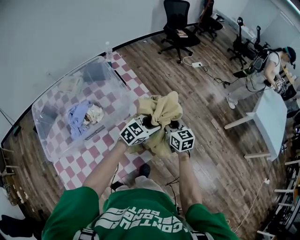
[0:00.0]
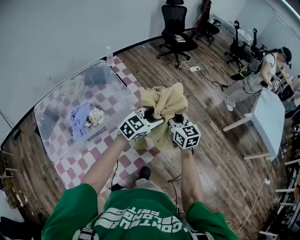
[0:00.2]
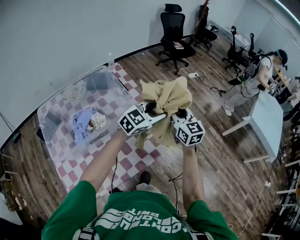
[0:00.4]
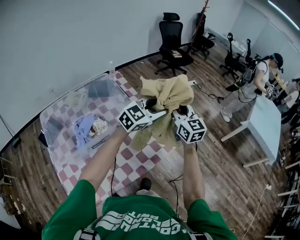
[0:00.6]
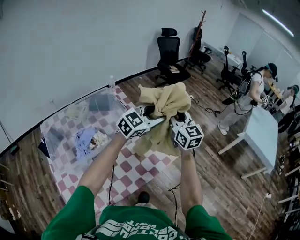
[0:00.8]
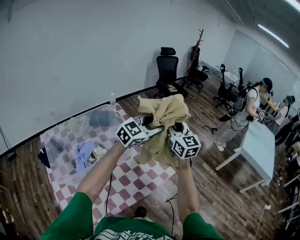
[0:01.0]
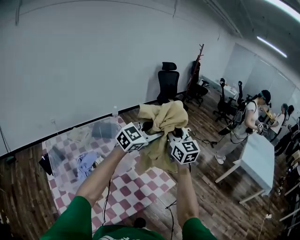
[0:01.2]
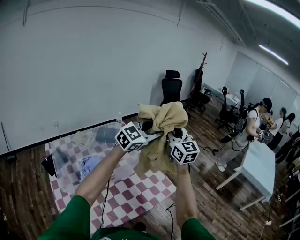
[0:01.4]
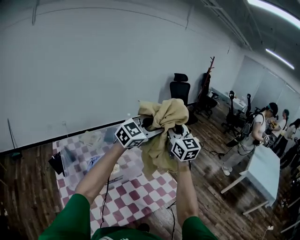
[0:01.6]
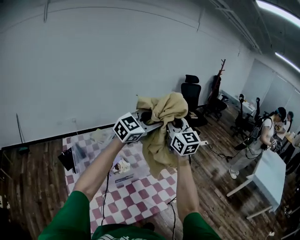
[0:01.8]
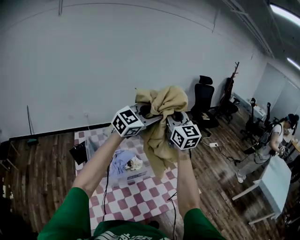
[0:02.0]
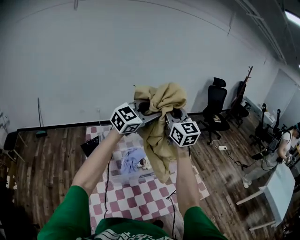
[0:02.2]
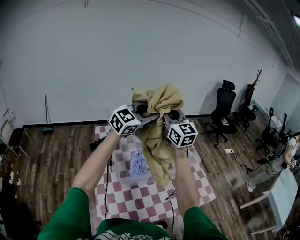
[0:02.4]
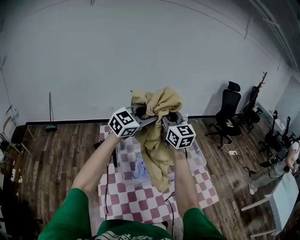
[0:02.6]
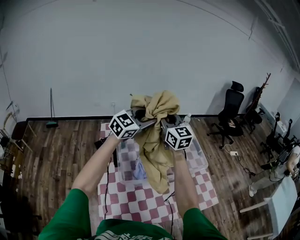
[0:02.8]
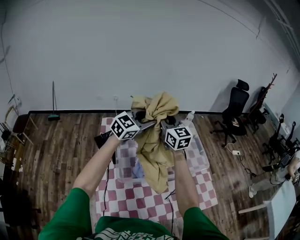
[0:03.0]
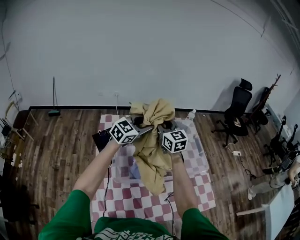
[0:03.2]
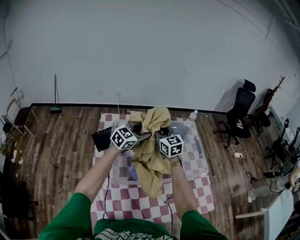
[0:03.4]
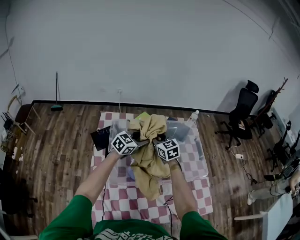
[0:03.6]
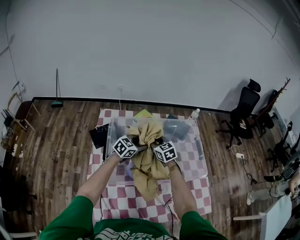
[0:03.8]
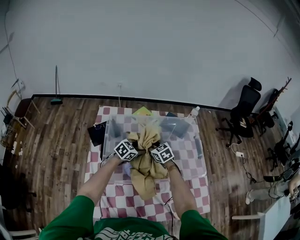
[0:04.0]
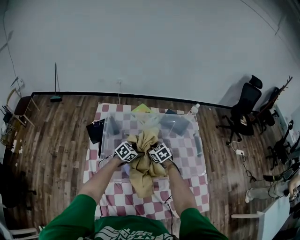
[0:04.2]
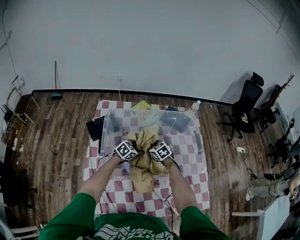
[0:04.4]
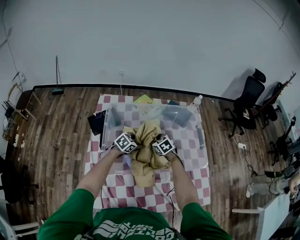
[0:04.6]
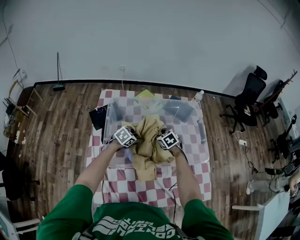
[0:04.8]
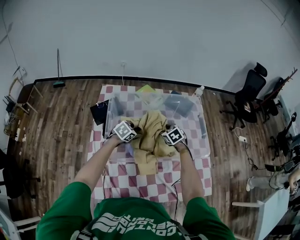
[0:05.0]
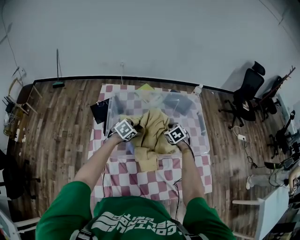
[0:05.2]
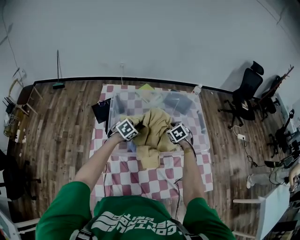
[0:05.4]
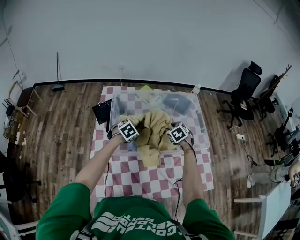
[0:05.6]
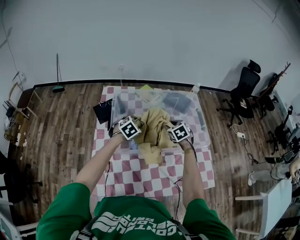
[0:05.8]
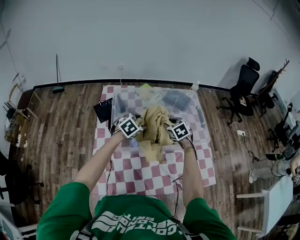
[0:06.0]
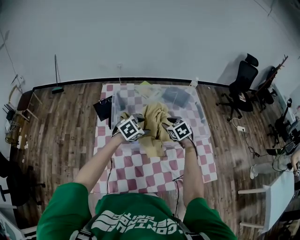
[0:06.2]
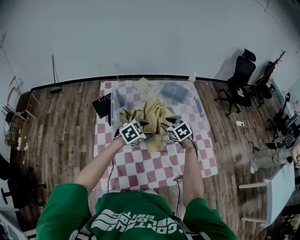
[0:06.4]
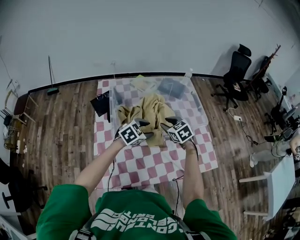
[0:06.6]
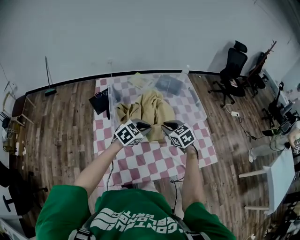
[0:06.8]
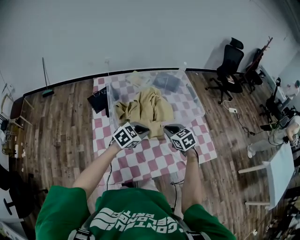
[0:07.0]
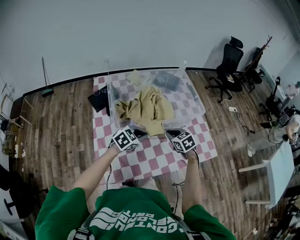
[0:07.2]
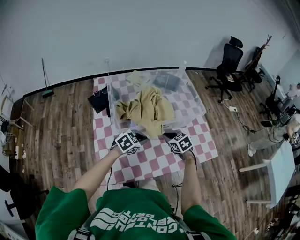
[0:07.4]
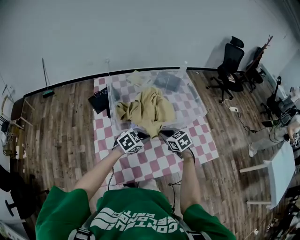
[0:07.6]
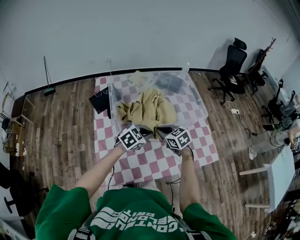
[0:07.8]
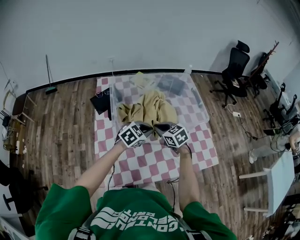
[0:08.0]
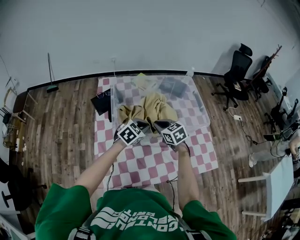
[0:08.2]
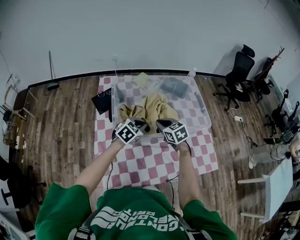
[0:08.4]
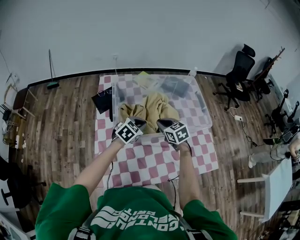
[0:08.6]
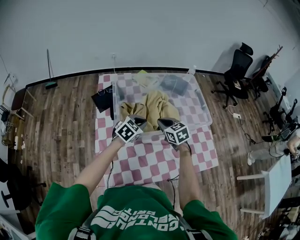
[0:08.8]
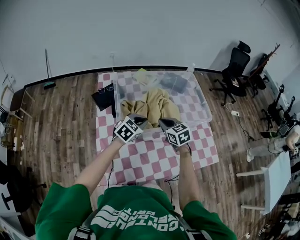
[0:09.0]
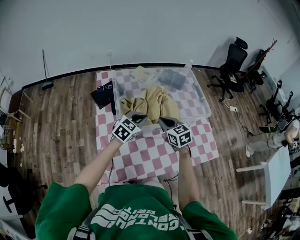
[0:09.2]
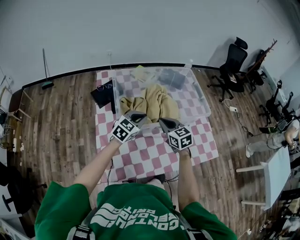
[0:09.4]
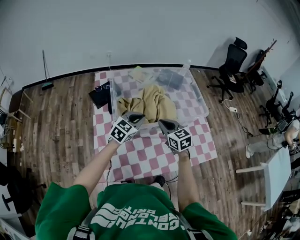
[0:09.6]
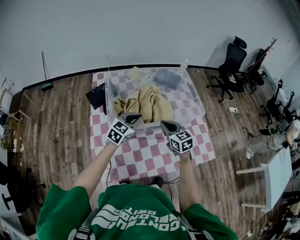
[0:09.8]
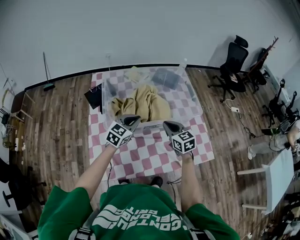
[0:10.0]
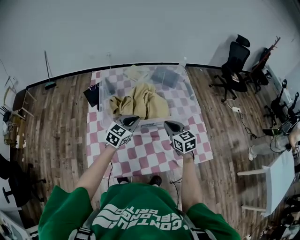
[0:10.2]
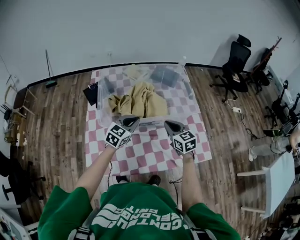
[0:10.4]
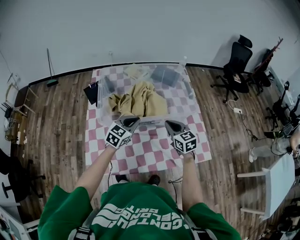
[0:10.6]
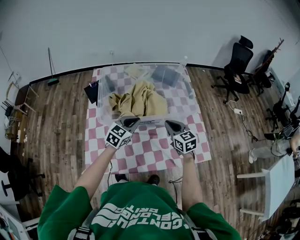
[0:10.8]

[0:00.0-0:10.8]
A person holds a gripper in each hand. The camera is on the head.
0:00.0 to 0:01.6: Both grippers move upward, about 40 cm. The right gripper tilts its fingers some 30 degrees upward; the left gripper changes its angle by about 30 degrees.
0:01.6 to 0:03.0: Both grippers are carried approximately 40 cm. The left gripper changes its angle by roughly 30 degrees. Meanwhile the right gripper swivels roughly 30 degrees.
0:03.0 to 0:04.6: Both grippers travel together downward, approximately 40 cm. The left gripper angles its fingers downward, by roughly 40 degrees, while the right gripper tilts its fingers about 50 degrees downward.
0:04.6 to 0:06.2: The right gripper travels upward, backward and to the right by approximately 15 cm. Meanwhile the left gripper moves upward and backward, roughly 15 cm.
0:06.2 to 0:07.8: The right gripper shifts roughly 15 cm backward, while the left gripper heads backward and to the right, covering approximately 15 cm, and closes up.
0:07.8 to 0:09.2: The left gripper is displaced to the left and forward by some 10 cm. Meanwhile the right gripper travels forward and back again, roughly 10 cm each way.
0:09.2 to 0:10.8: The right gripper is displaced to the right by about 15 cm, while the left gripper shifts about 10 cm to the right.

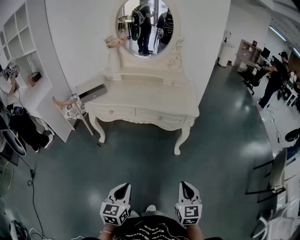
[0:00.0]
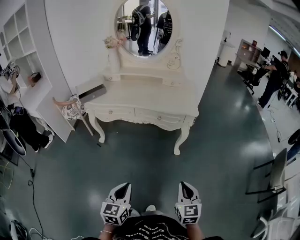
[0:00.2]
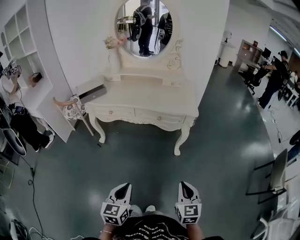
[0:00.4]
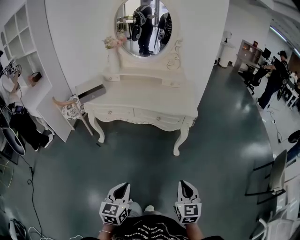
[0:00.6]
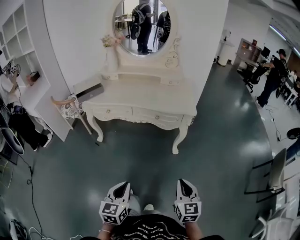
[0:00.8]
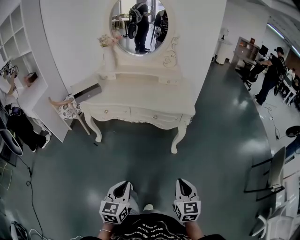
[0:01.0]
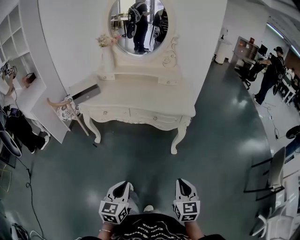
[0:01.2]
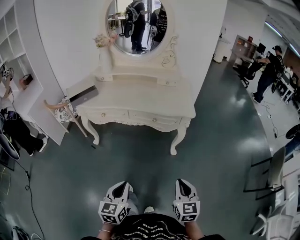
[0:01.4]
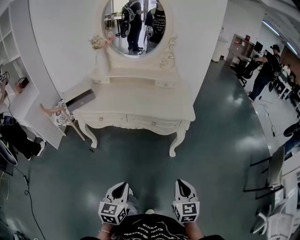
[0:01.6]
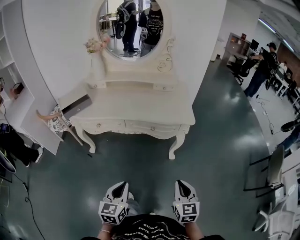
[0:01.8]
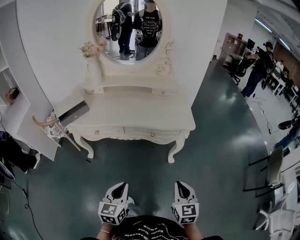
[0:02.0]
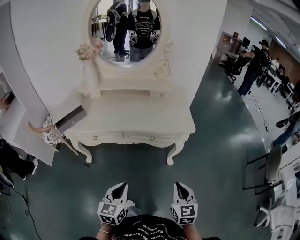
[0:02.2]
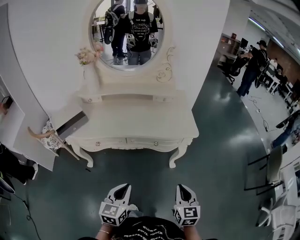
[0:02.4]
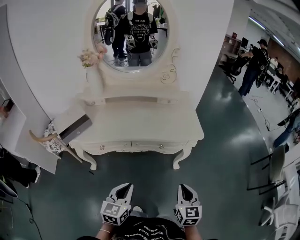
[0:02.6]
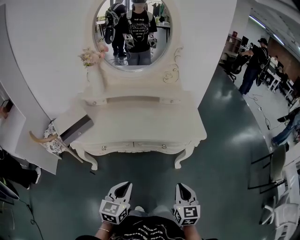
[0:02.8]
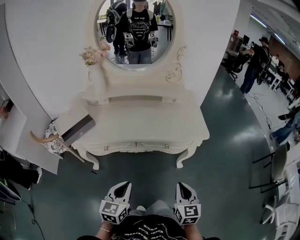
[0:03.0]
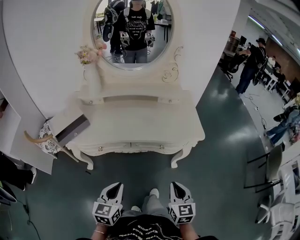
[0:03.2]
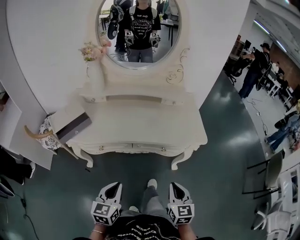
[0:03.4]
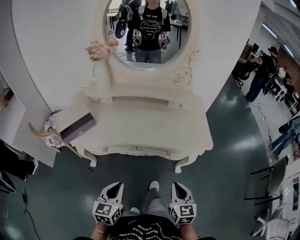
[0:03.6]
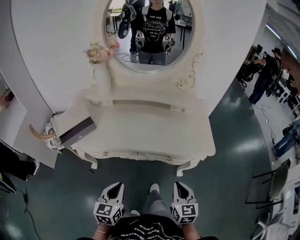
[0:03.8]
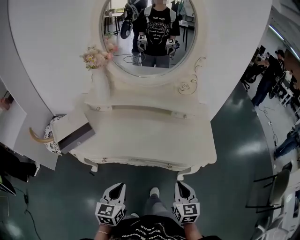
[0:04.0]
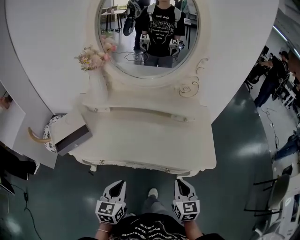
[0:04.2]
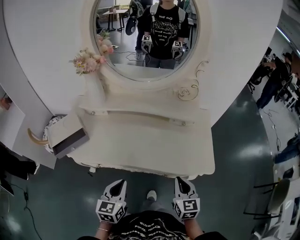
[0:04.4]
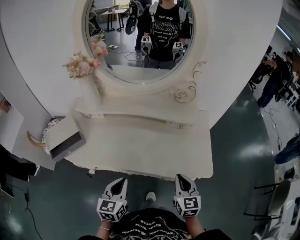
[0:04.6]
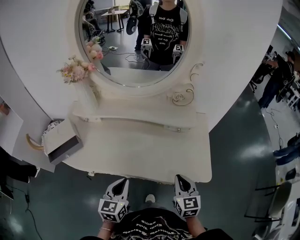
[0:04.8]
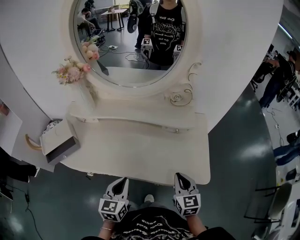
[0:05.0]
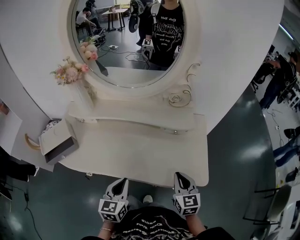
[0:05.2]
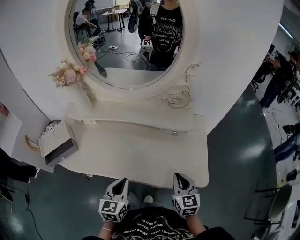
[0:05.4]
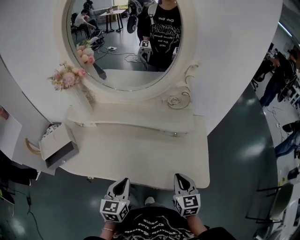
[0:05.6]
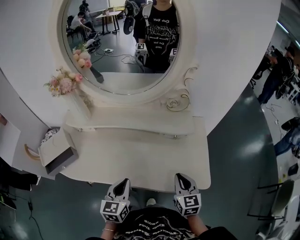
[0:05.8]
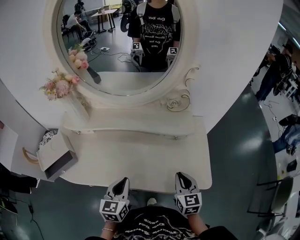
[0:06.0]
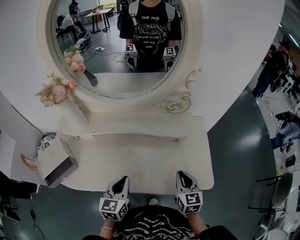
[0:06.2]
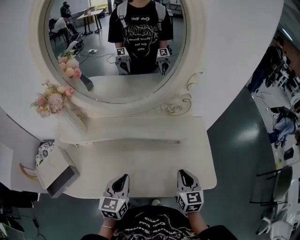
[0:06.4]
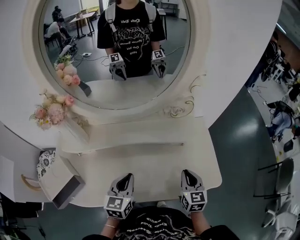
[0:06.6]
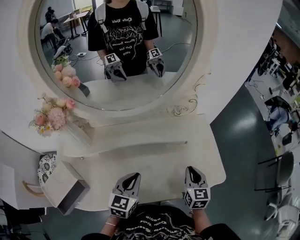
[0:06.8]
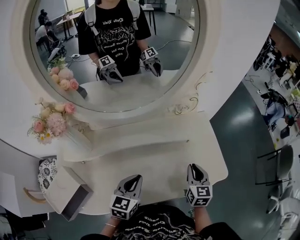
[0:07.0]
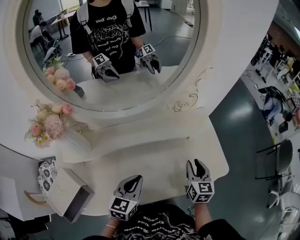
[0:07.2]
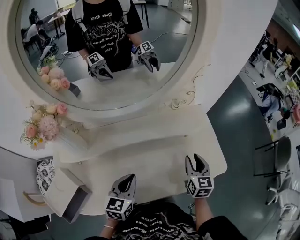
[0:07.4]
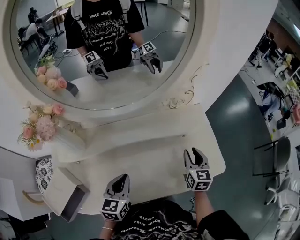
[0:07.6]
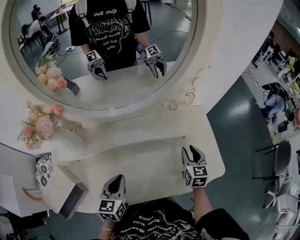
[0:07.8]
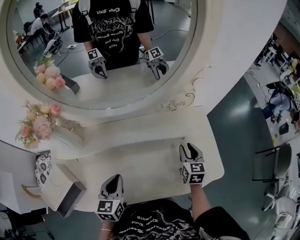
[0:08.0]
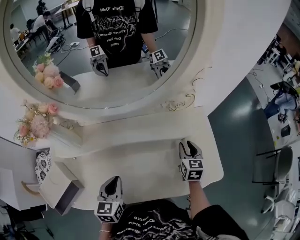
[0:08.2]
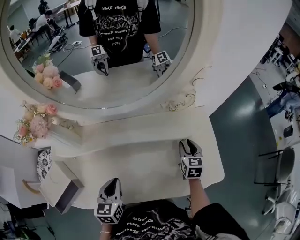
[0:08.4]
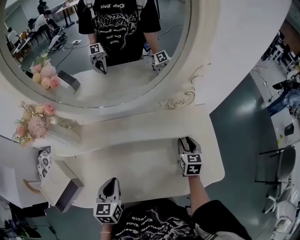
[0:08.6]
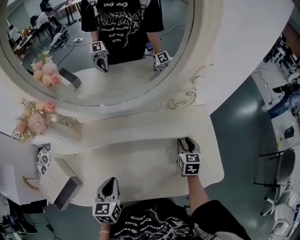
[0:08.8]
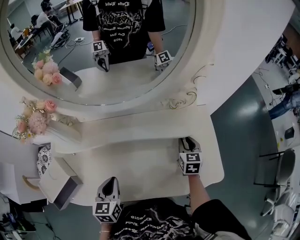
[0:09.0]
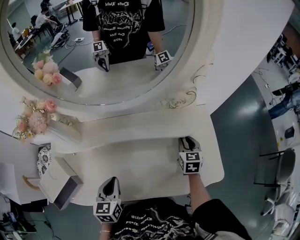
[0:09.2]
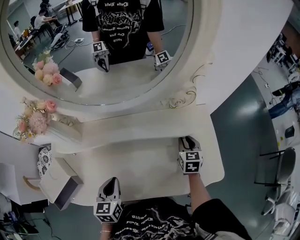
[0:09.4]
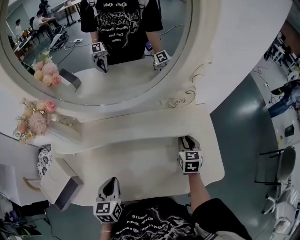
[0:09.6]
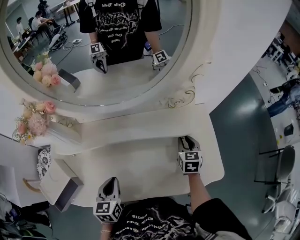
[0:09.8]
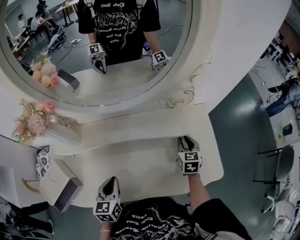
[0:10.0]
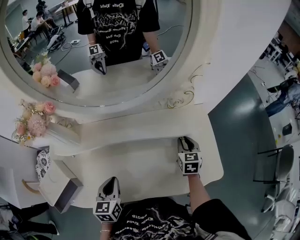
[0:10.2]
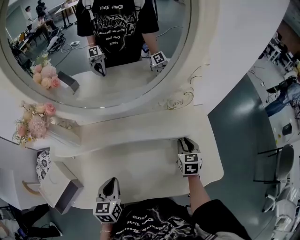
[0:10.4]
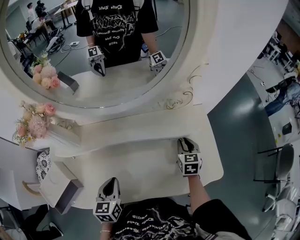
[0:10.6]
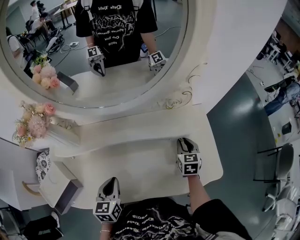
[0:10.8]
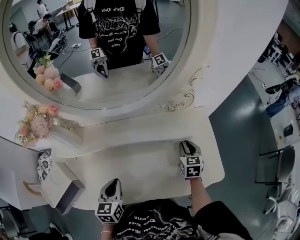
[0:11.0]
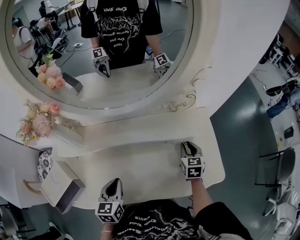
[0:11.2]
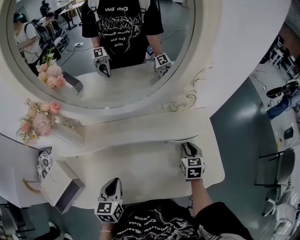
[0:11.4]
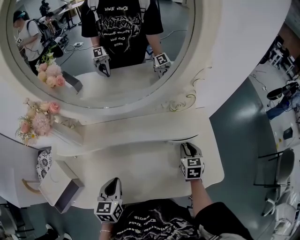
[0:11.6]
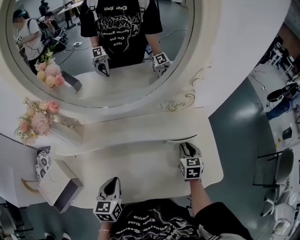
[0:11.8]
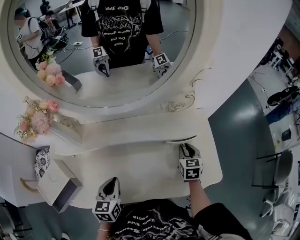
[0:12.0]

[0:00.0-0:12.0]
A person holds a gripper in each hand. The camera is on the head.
0:00.0 to 0:01.6: Both grippers travel together forward, approximately 10 cm.
0:01.6 to 0:03.0: The left gripper travels forward and to the left by about 25 cm. Meanwhile the right gripper moves to the left and forward, approximately 20 cm.
0:03.0 to 0:04.4: Both grippers travel together forward, about 20 cm.
0:04.4 to 0:06.0: The right gripper goes roughly 10 cm forward. The left gripper goes about 15 cm forward and to the right.
0:06.0 to 0:07.6: The right gripper ends up roughly 10 cm from where it was, rotates some 20 degrees, and opens; the left gripper moves about 15 cm.
0:07.6 to 0:09.0: The right gripper travels forward and downward by about 10 cm.
0:09.0 to 0:10.4: Both grippers stay about where they are.
0:10.4 to 0:12.0: The grippers make only small movements.

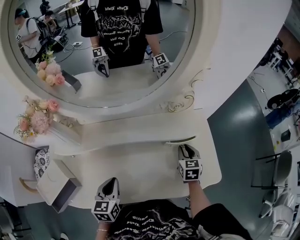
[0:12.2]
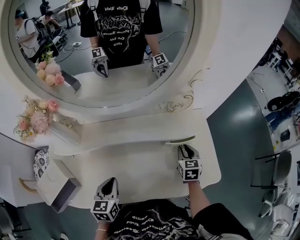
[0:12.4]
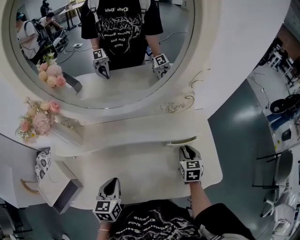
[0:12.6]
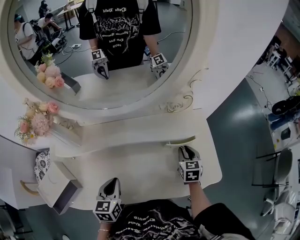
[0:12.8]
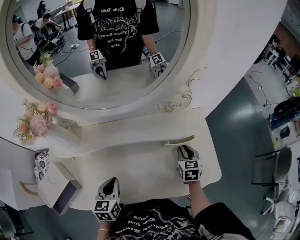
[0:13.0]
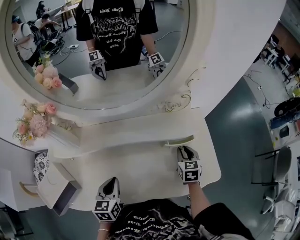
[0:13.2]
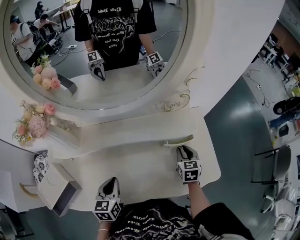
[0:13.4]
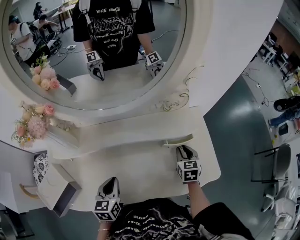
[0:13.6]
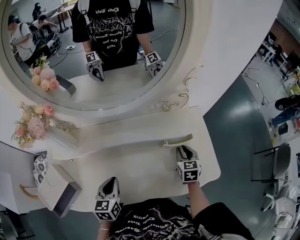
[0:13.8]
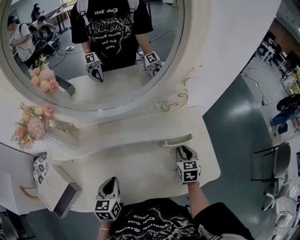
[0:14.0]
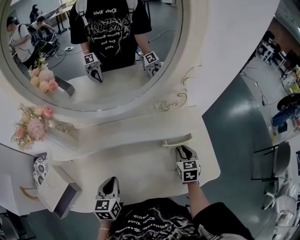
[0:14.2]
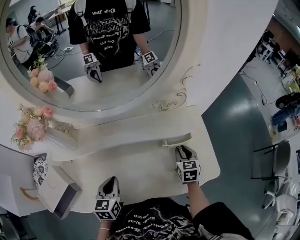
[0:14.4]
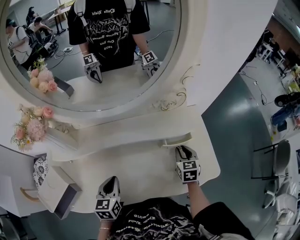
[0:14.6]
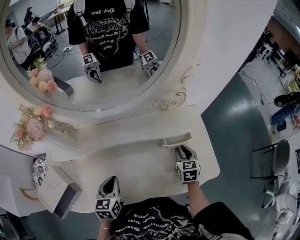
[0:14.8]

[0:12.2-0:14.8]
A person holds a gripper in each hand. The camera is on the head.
0:12.2 to 0:13.4: Both grippers stay about where they are.
0:13.4 to 0:14.8: Neither gripper changes place.
